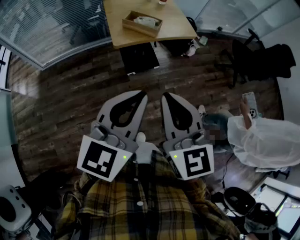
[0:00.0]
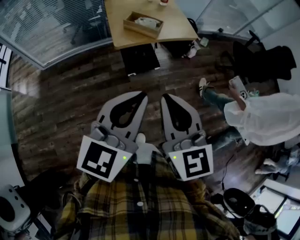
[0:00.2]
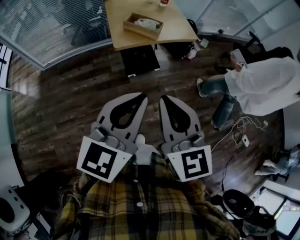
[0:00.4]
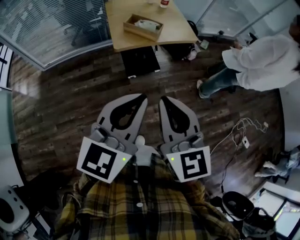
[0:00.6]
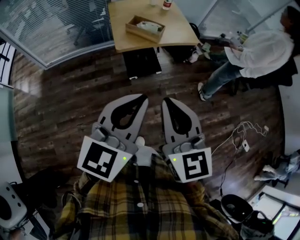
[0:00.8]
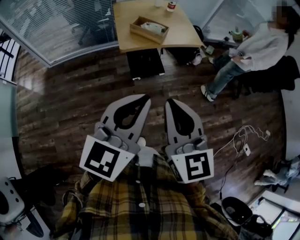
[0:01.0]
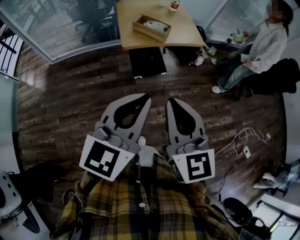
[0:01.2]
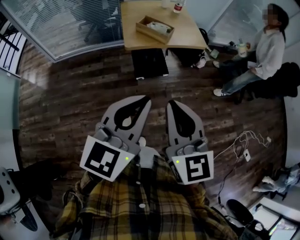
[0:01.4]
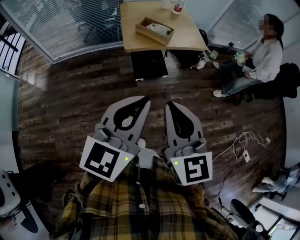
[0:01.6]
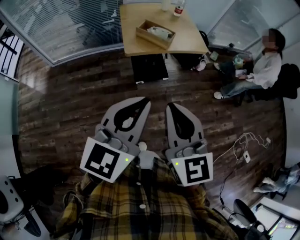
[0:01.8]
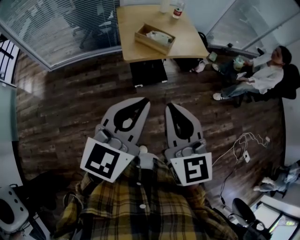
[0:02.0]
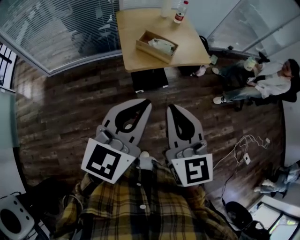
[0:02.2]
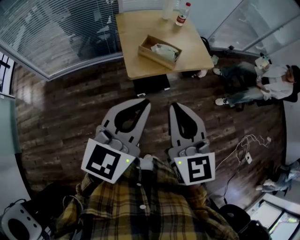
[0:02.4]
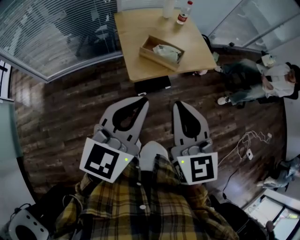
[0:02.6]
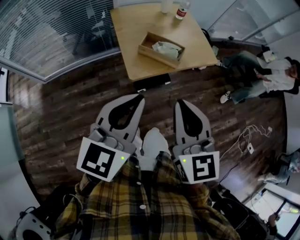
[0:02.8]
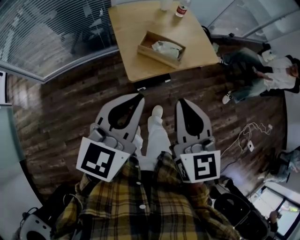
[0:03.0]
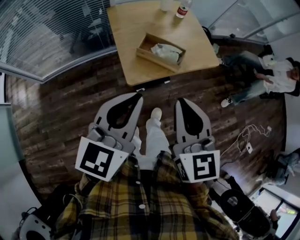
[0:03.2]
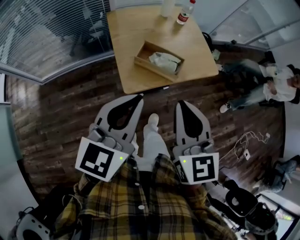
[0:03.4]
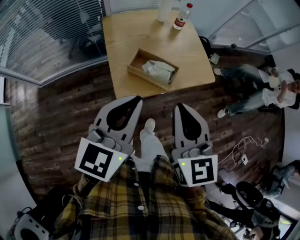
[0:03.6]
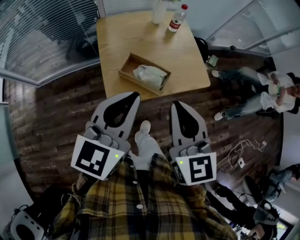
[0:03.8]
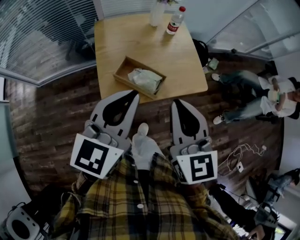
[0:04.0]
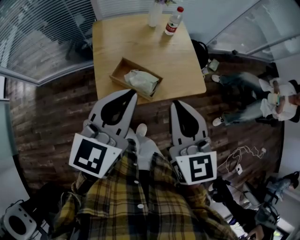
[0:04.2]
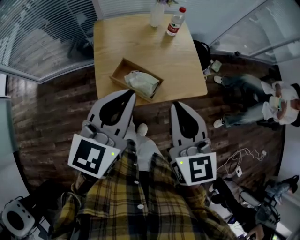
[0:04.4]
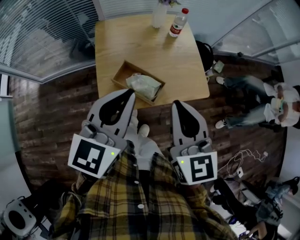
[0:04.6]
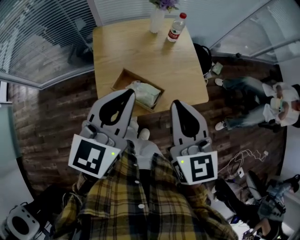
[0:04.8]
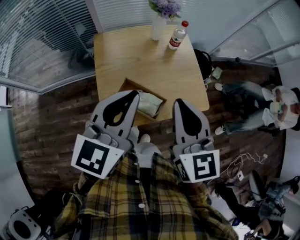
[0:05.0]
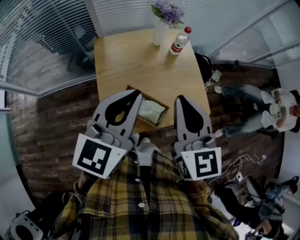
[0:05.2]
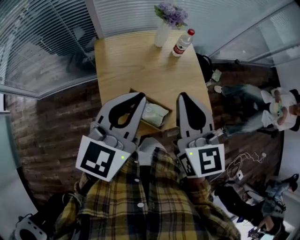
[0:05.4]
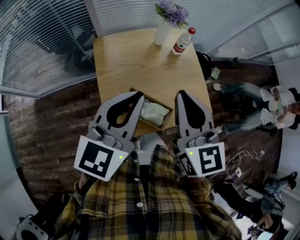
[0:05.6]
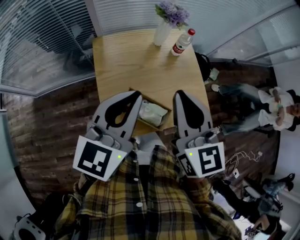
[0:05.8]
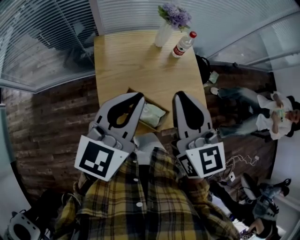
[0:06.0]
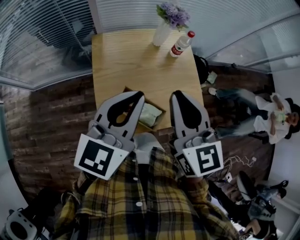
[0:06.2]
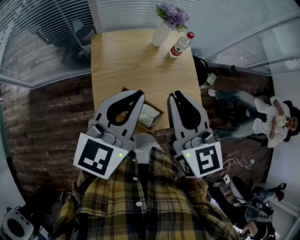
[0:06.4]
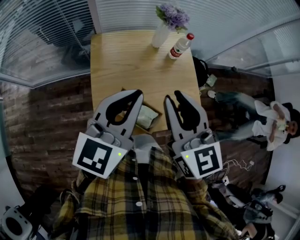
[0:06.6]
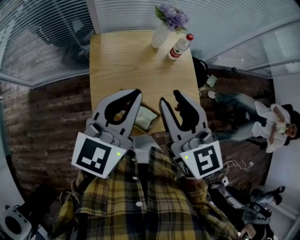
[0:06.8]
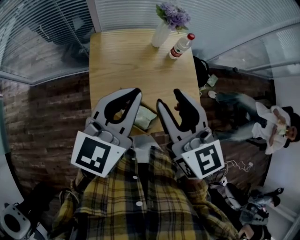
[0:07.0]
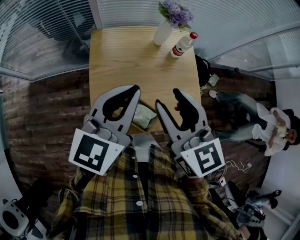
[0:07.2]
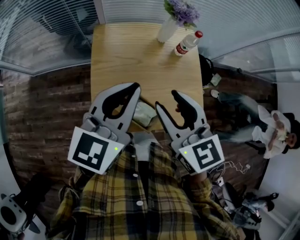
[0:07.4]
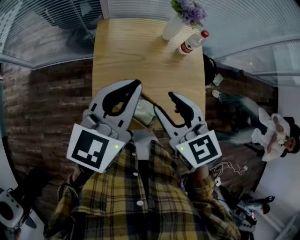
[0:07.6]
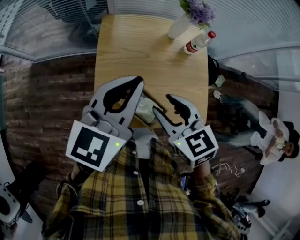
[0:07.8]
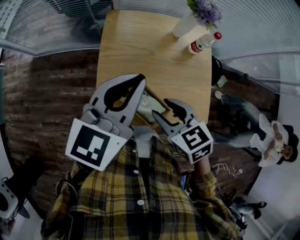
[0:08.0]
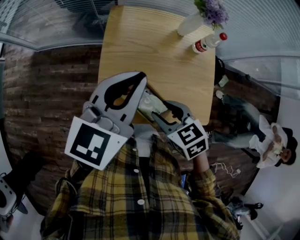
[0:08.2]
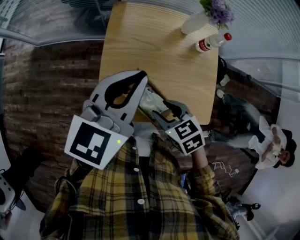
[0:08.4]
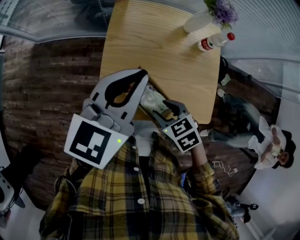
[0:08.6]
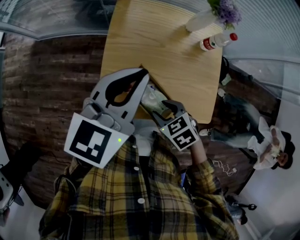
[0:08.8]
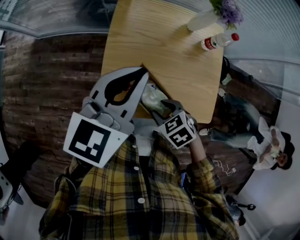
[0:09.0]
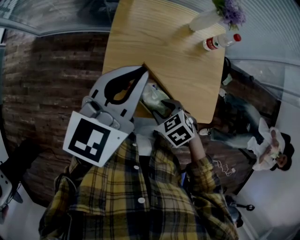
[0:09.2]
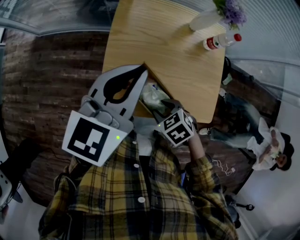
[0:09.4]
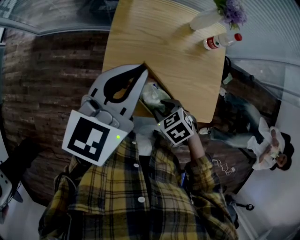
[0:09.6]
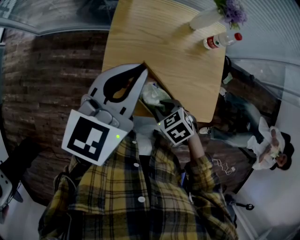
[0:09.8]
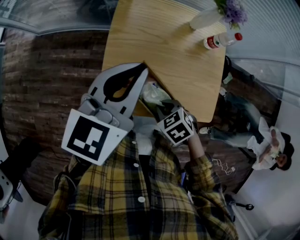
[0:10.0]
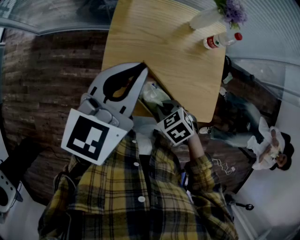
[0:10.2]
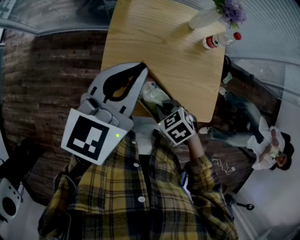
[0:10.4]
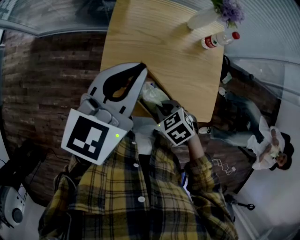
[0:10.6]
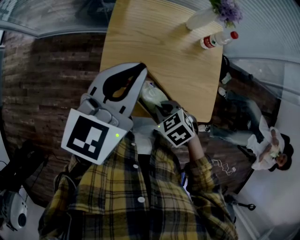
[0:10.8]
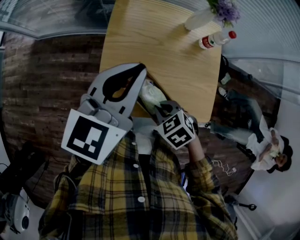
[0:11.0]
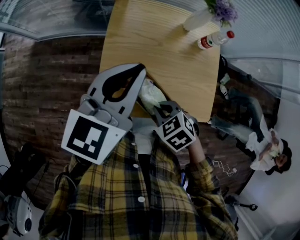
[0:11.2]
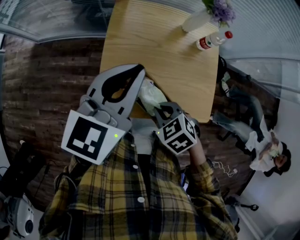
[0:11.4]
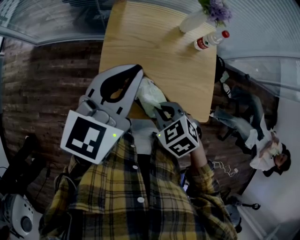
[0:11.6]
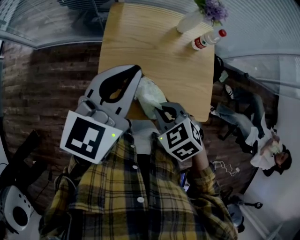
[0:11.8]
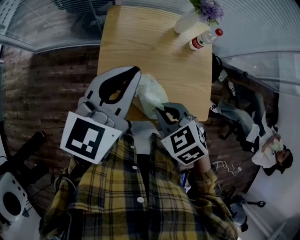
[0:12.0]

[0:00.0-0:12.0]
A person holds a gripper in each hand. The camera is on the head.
0:00.0 to 0:01.6: The grippers move only a little.
0:01.6 to 0:03.0: Both grippers move forward and to the left, approximately 25 cm.
0:03.0 to 0:04.4: The grippers both shift forward and to the right by about 20 cm.
0:04.4 to 0:06.0: Both grippers move forward and to the left, about 15 cm.
0:06.0 to 0:07.6: The right gripper shifts roughly 10 cm downward, changes its angle by roughly 30 degrees, and opens.
0:07.6 to 0:09.0: The left gripper moves roughly 5 cm. The right gripper heads downward, covering about 20 cm, and tips its fingers downward by about 40 degrees.
0:09.0 to 0:10.4: The right gripper closes.
0:10.4 to 0:12.0: The right gripper moves upward, approximately 15 cm.

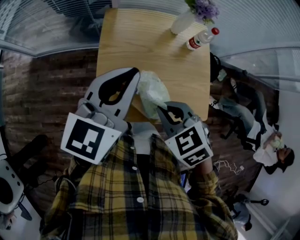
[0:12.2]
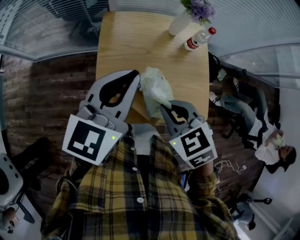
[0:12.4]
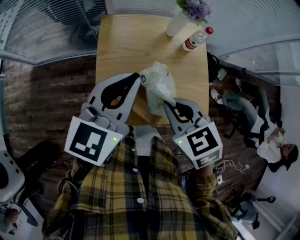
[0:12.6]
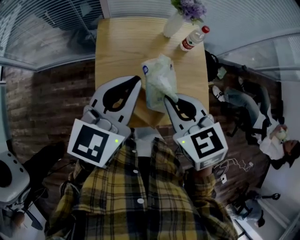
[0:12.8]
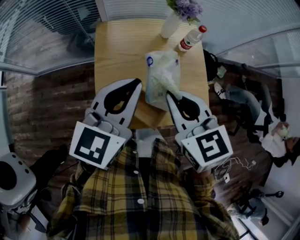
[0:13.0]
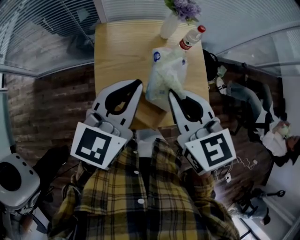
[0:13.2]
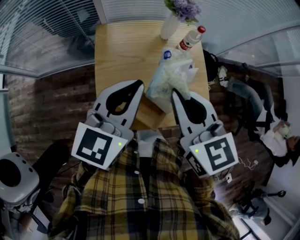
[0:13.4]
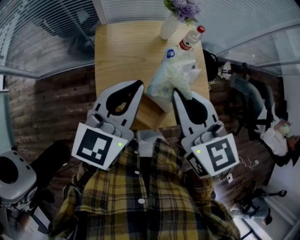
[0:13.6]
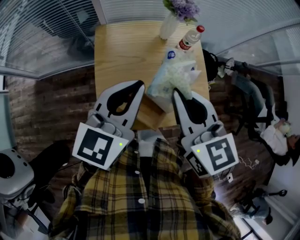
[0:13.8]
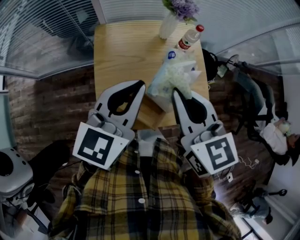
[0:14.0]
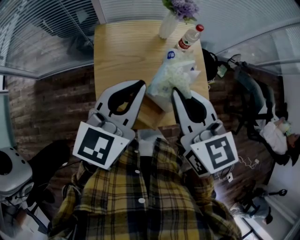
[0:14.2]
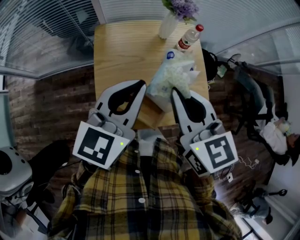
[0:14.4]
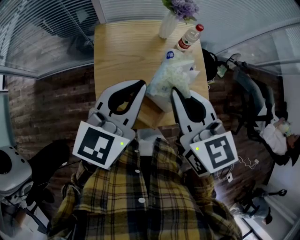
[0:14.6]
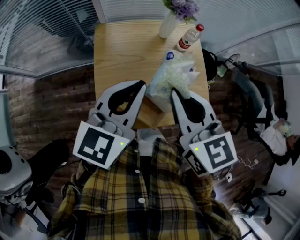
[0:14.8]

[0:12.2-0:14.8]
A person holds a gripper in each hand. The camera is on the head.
0:12.2 to 0:13.4: The right gripper is displaced upward and forward by about 15 cm, and points its fingers some 30 degrees further upward.
0:13.4 to 0:14.8: Both grippers stay put.

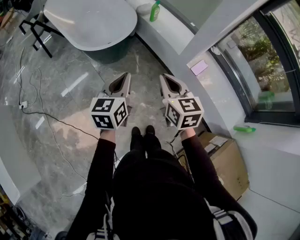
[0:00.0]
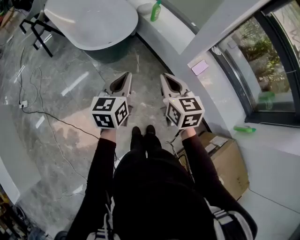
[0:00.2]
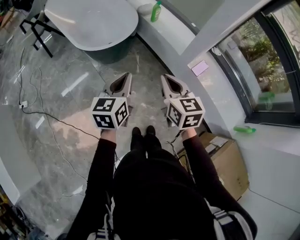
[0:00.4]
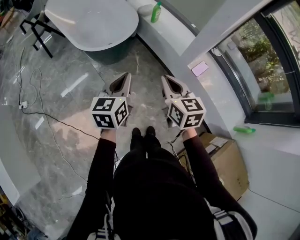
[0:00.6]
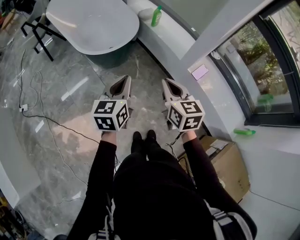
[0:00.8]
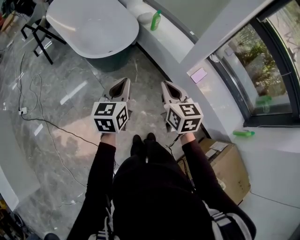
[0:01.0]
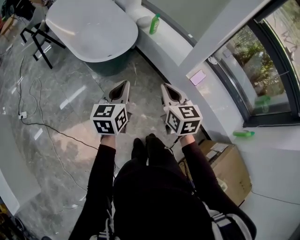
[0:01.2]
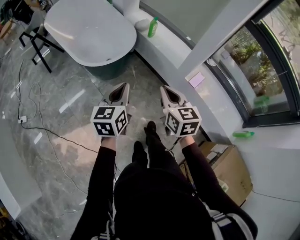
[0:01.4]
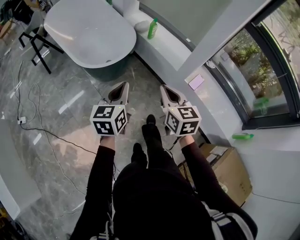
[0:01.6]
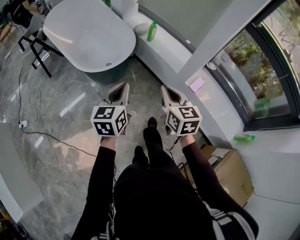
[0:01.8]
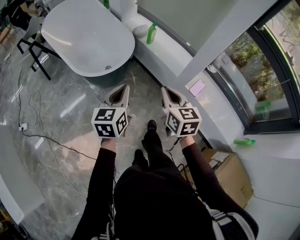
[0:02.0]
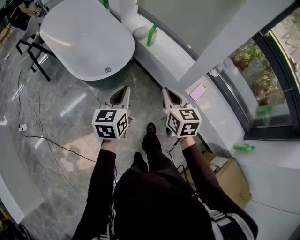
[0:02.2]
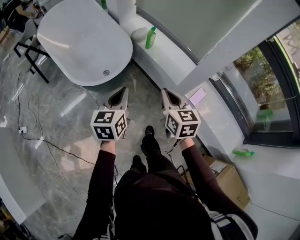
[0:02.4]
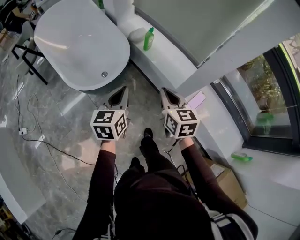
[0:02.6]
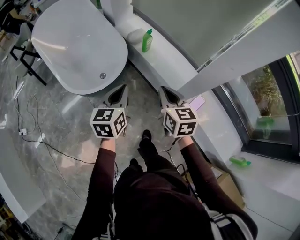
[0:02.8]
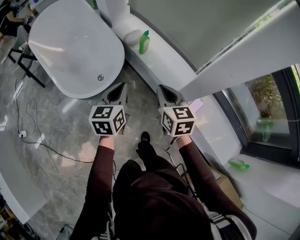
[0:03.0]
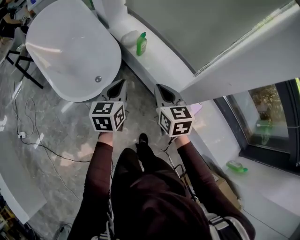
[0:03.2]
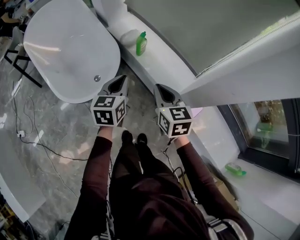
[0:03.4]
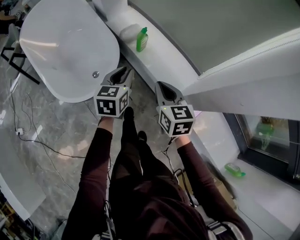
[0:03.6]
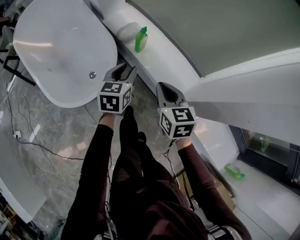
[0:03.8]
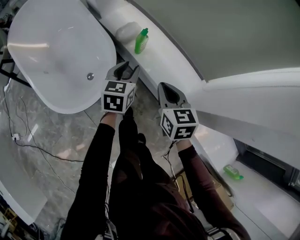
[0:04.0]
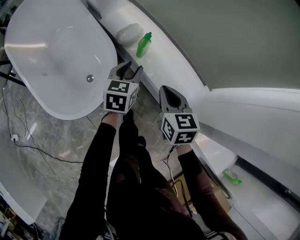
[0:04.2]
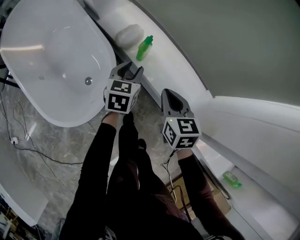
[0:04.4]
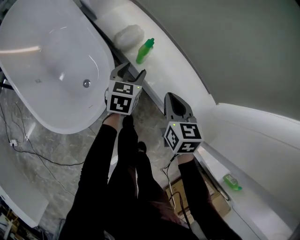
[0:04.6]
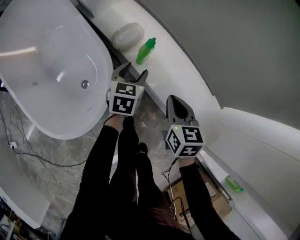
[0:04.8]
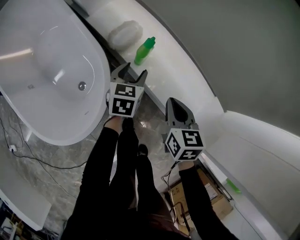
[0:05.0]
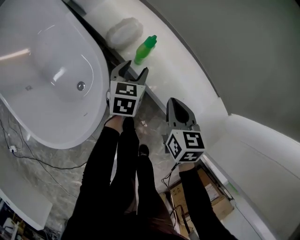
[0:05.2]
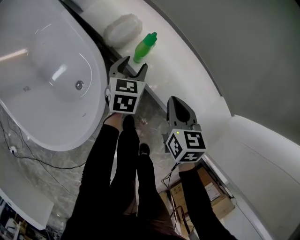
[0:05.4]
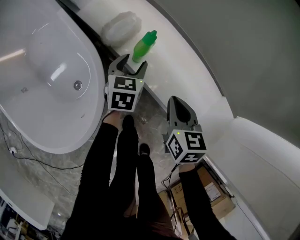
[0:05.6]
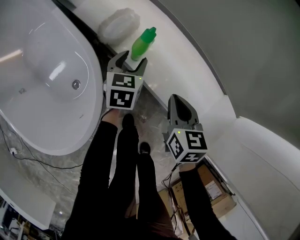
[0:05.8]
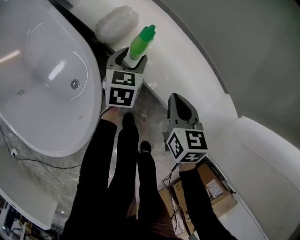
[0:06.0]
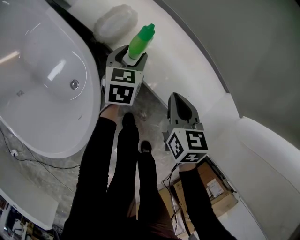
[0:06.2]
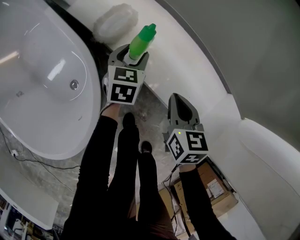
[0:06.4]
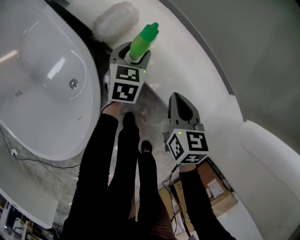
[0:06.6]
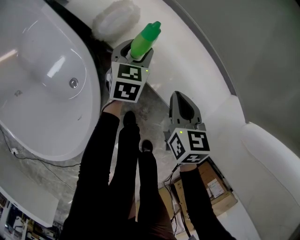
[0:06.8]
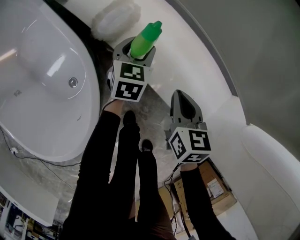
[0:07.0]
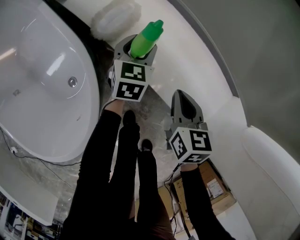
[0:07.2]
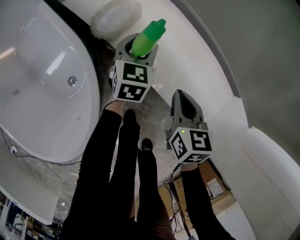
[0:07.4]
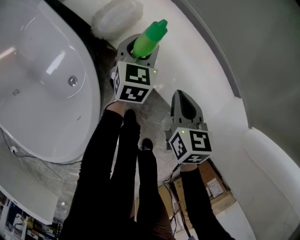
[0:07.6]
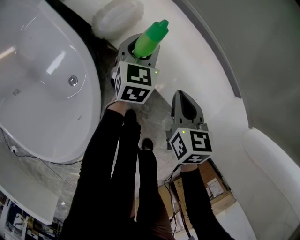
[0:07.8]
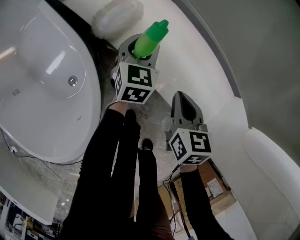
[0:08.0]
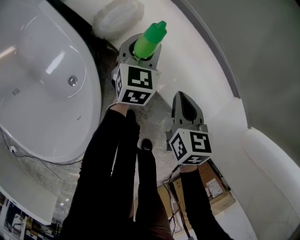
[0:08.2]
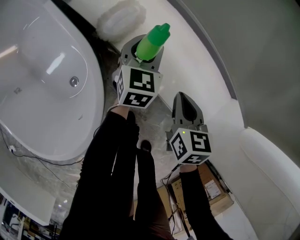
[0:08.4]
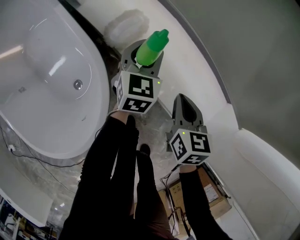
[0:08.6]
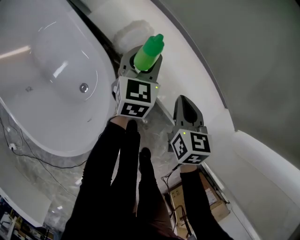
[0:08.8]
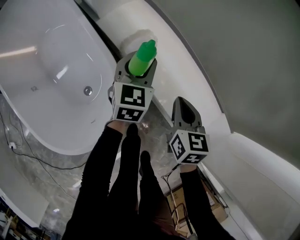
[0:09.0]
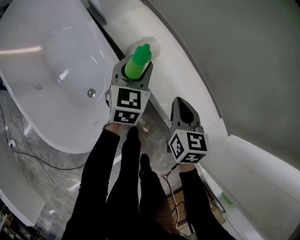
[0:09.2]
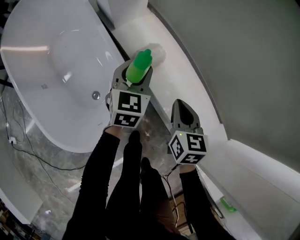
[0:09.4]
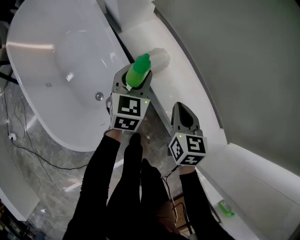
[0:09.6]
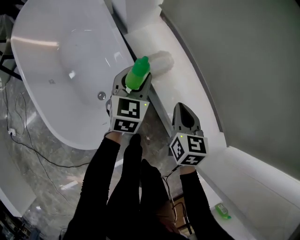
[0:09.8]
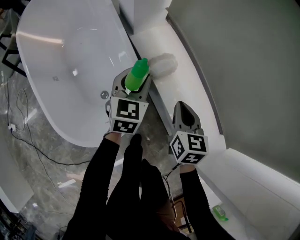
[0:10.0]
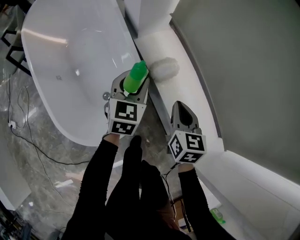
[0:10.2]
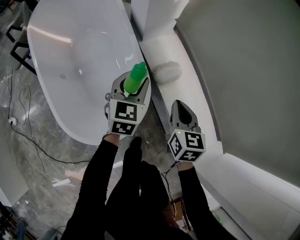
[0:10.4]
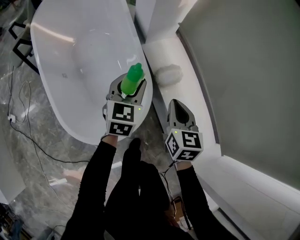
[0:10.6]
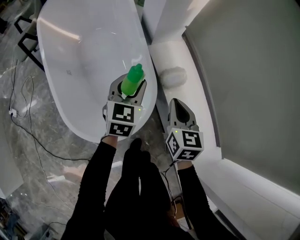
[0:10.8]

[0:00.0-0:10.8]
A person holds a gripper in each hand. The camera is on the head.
0:00.0 to 0:01.6: The grippers move only a little.
0:01.6 to 0:03.0: The two grippers go roughly 25 cm forward.
0:03.0 to 0:04.6: The two grippers go about 30 cm forward and downward. The left gripper opens up.
0:04.6 to 0:06.2: The right gripper goes roughly 15 cm downward; the left gripper goes roughly 15 cm downward and forward.
0:06.2 to 0:07.8: The grippers move only a little.
0:07.8 to 0:09.2: Both grippers move upward and to the left, some 20 cm.
0:09.2 to 0:10.8: Both grippers travel together to the left and upward, about 20 cm.
